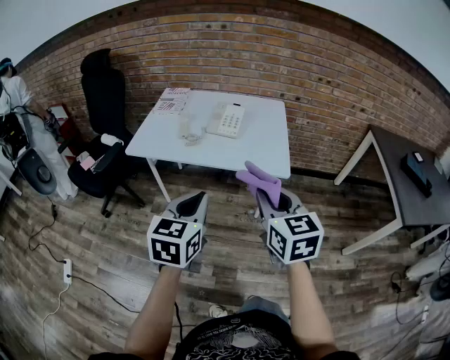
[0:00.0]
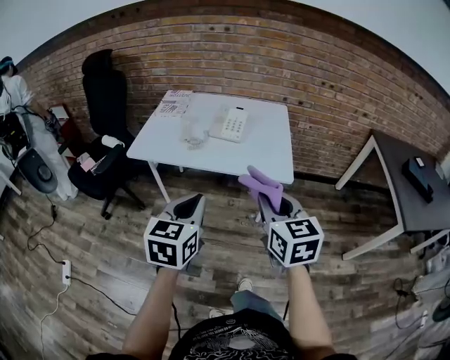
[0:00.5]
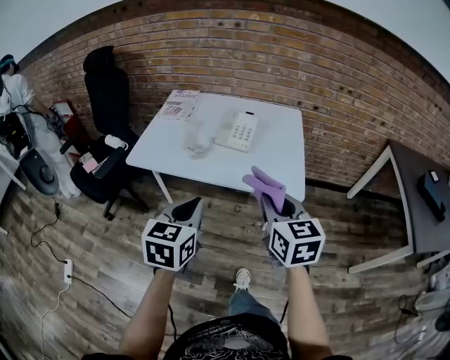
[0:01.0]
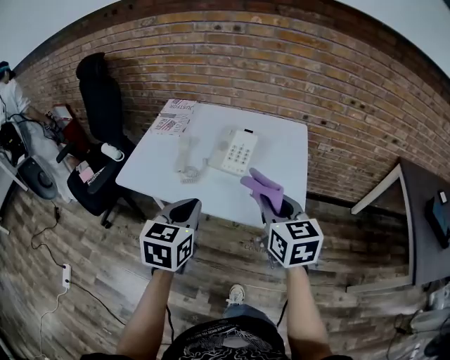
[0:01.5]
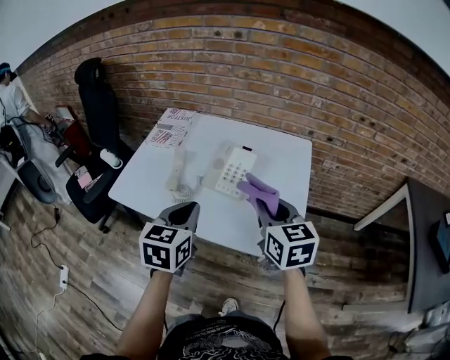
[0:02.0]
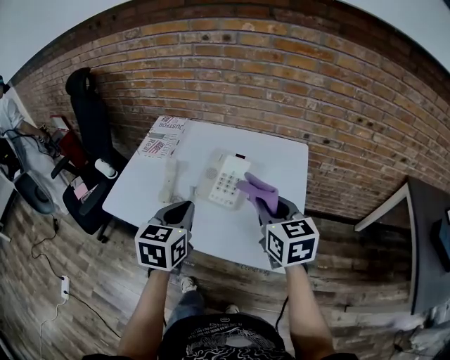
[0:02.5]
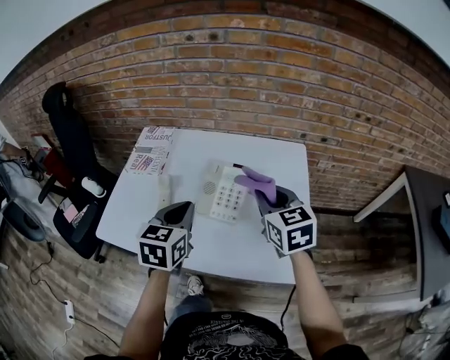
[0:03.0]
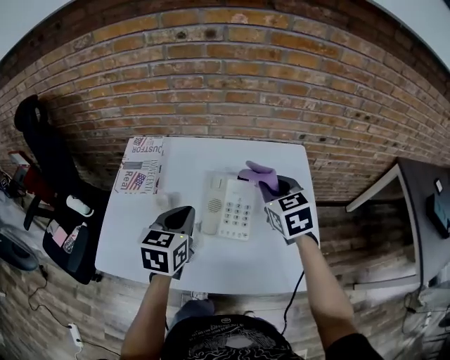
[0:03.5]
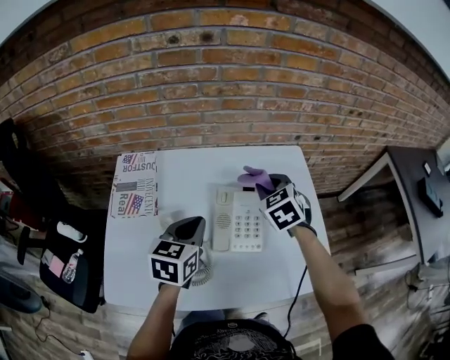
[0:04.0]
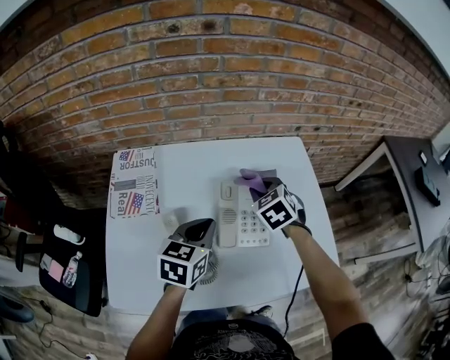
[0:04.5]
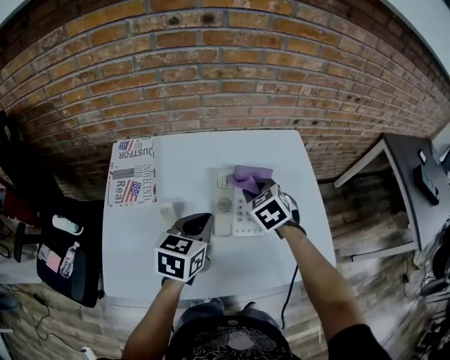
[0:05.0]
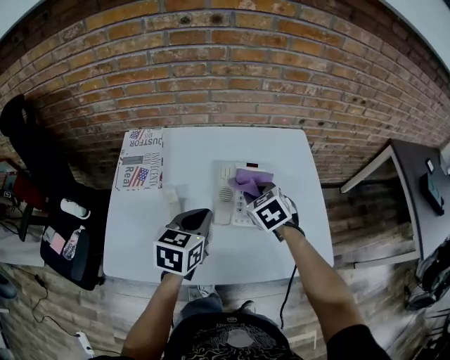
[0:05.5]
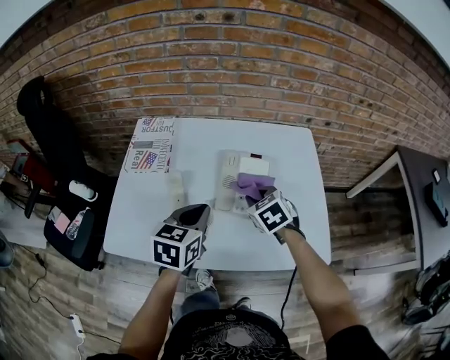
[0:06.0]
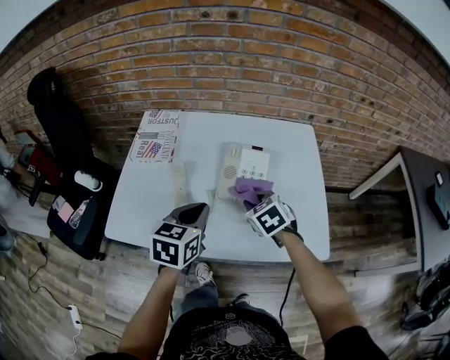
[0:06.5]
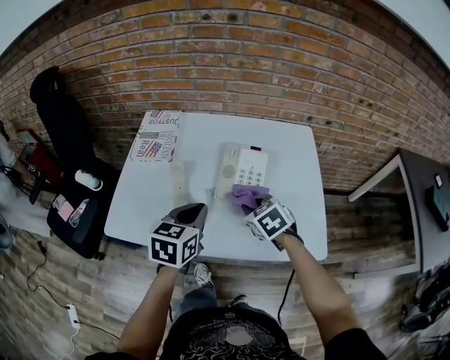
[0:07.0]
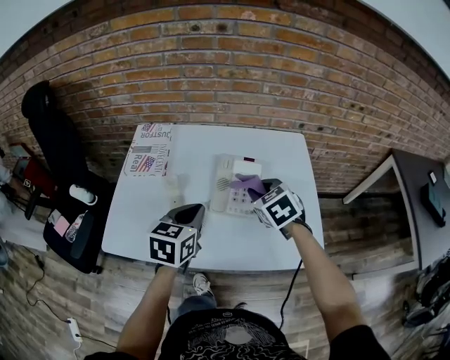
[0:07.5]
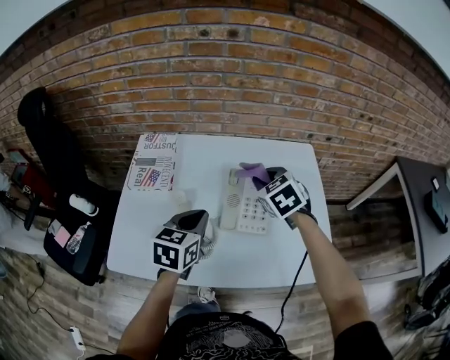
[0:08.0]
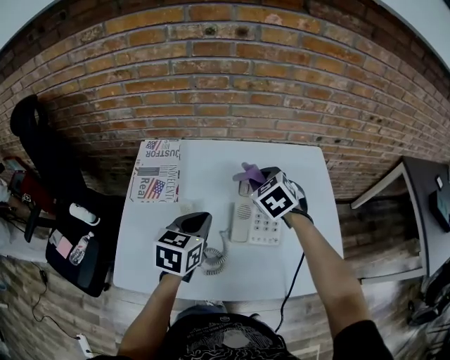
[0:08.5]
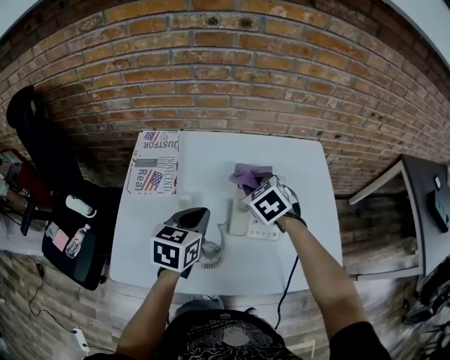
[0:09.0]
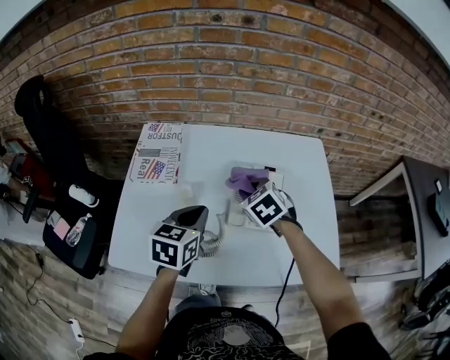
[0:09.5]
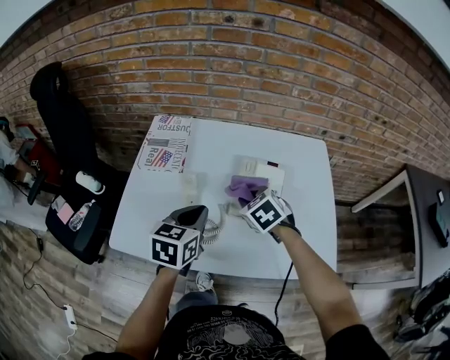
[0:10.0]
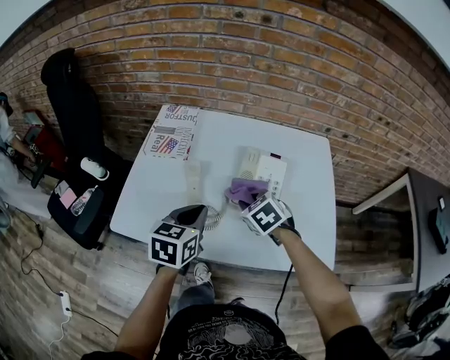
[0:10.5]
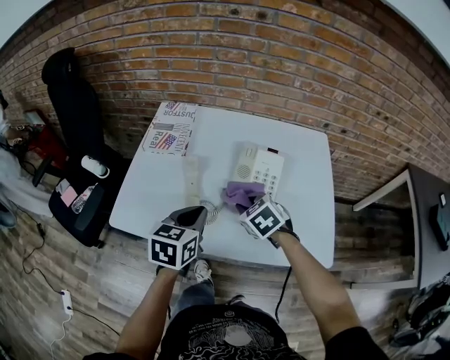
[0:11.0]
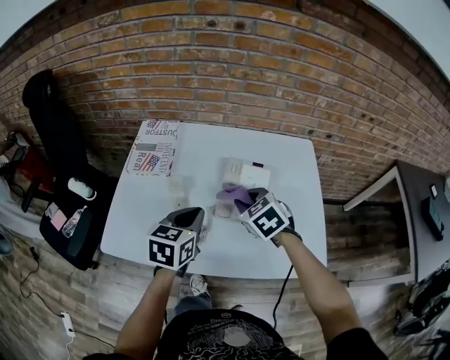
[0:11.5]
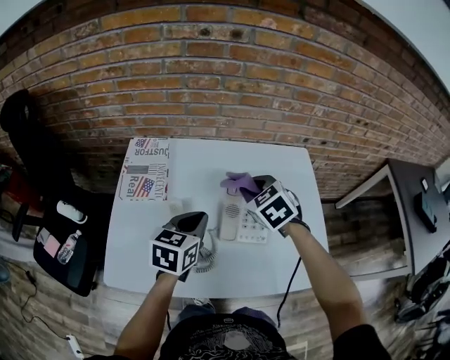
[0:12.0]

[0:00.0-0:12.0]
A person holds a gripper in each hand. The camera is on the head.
0:00.0 to 0:02.0: The two grippers go roughly 35 cm forward.
0:02.0 to 0:04.0: The left gripper shifts by some 25 cm, and swivels approximately 30 degrees. The right gripper changes place by about 30 cm, and turns by about 40 degrees.
0:04.0 to 0:06.0: The left gripper travels backward by about 10 cm; the right gripper travels backward and downward by some 15 cm.
0:06.0 to 0:08.0: The right gripper shifts about 10 cm upward and forward.
0:08.0 to 0:10.0: The right gripper moves downward, backward and to the left, roughly 15 cm.
0:10.0 to 0:12.0: The right gripper heads upward and forward, covering about 10 cm, while the left gripper is displaced forward by approximately 5 cm.

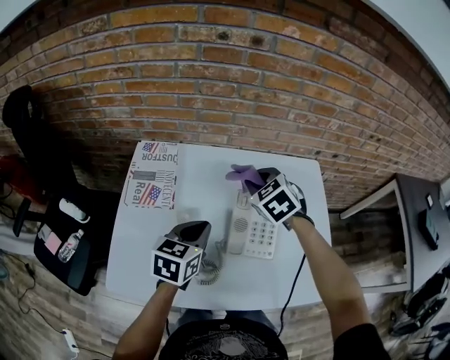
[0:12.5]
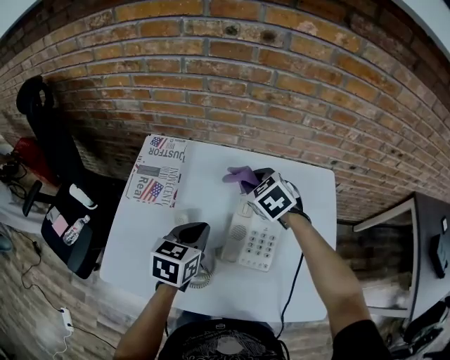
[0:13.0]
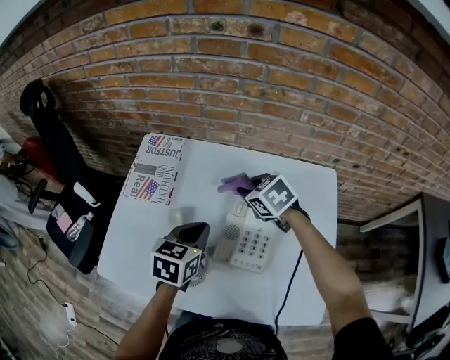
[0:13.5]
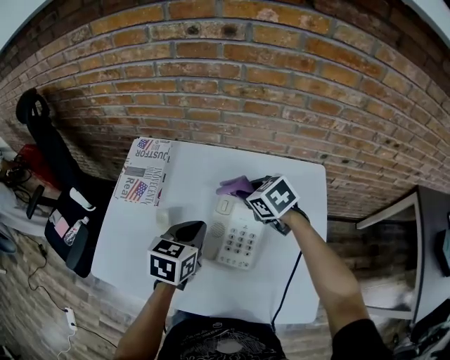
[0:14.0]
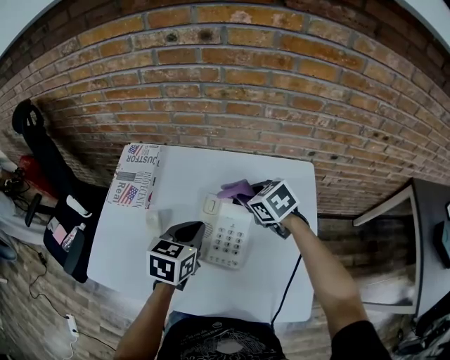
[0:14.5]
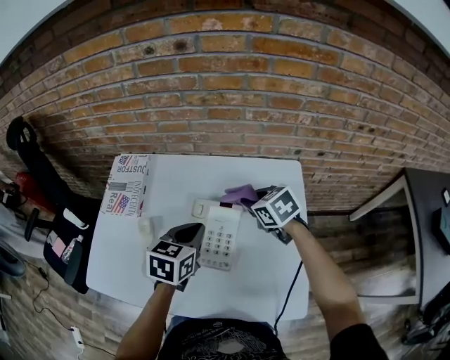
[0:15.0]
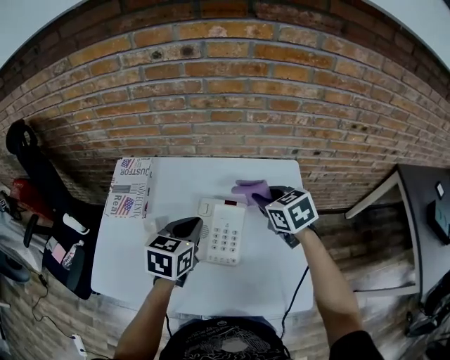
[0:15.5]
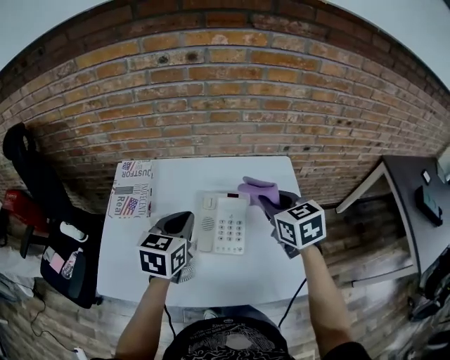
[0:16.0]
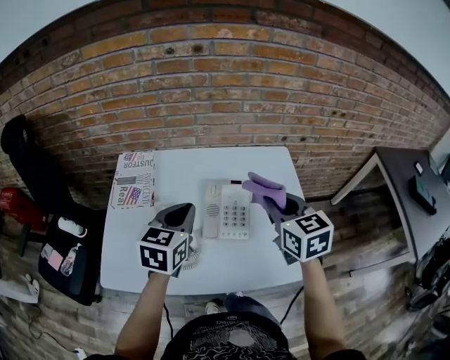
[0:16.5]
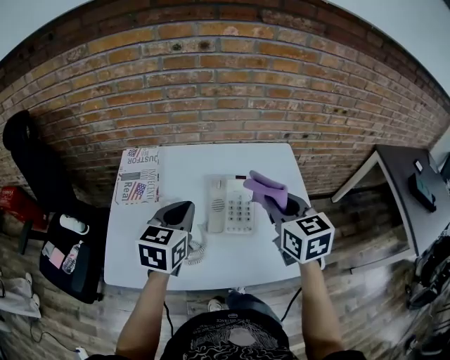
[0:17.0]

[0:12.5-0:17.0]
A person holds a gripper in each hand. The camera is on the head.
0:12.5 to 0:14.5: The left gripper heads to the right, covering some 10 cm. Meanwhile the right gripper travels to the right and downward by about 10 cm, and turns by about 30 degrees.
0:14.5 to 0:17.0: The right gripper moves backward and upward, approximately 25 cm, and rotates about 40 degrees. Meanwhile the left gripper heads upward, to the left and backward, covering some 15 cm.

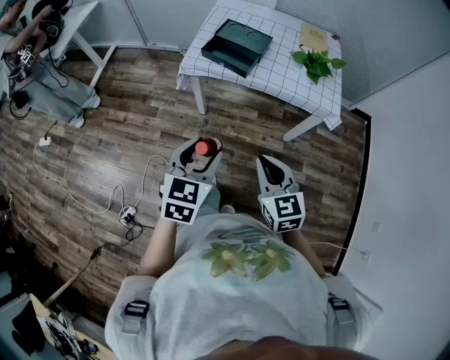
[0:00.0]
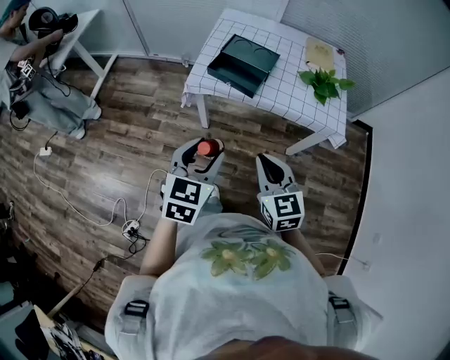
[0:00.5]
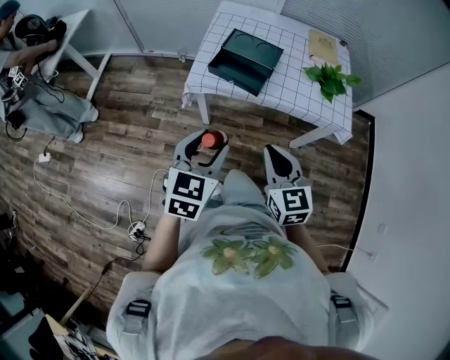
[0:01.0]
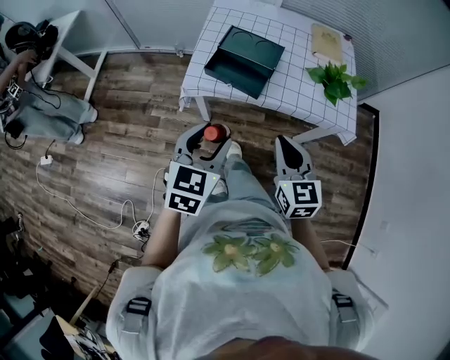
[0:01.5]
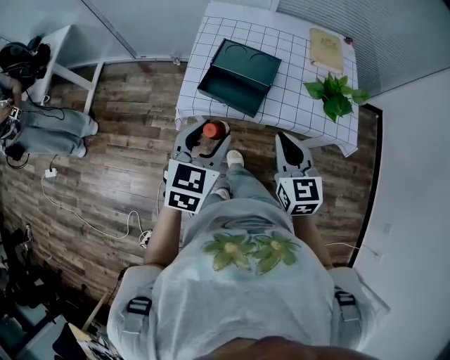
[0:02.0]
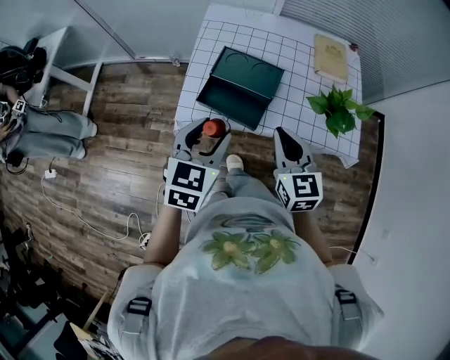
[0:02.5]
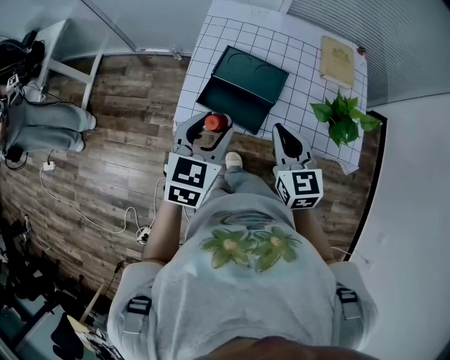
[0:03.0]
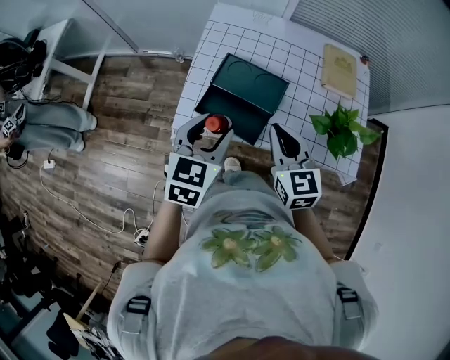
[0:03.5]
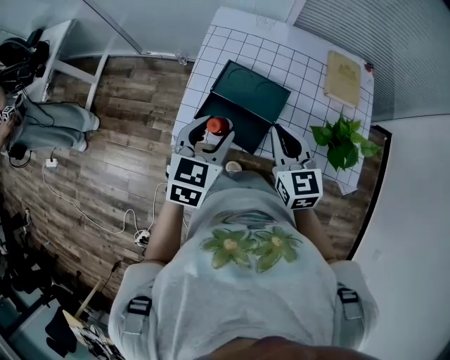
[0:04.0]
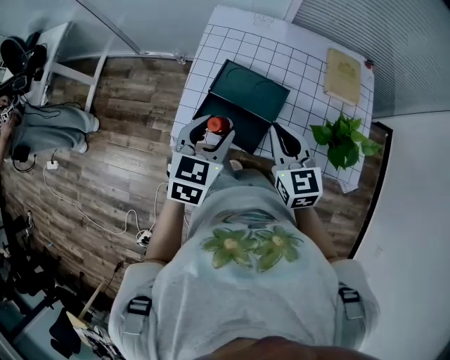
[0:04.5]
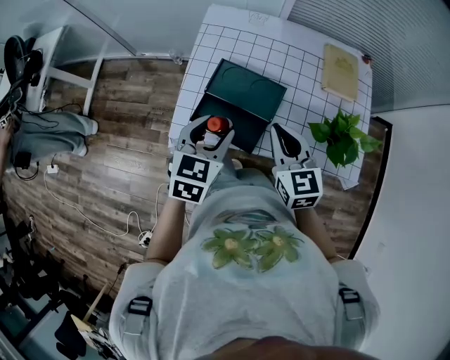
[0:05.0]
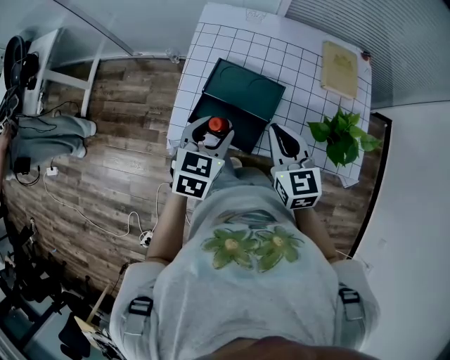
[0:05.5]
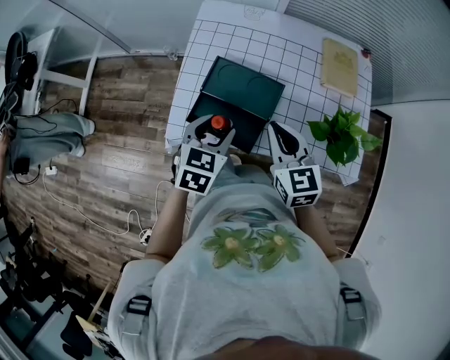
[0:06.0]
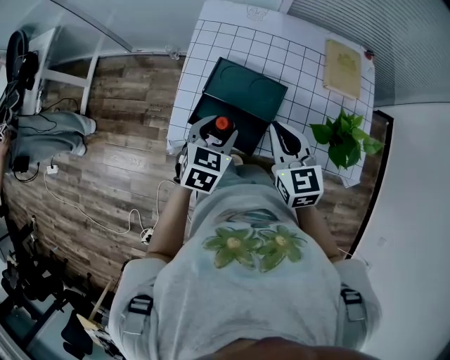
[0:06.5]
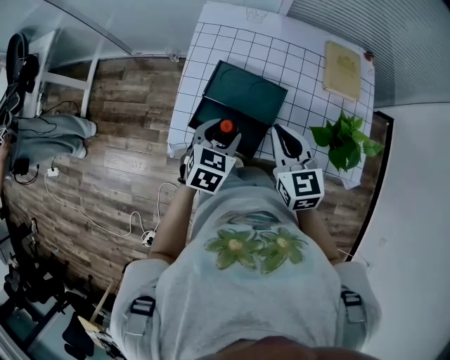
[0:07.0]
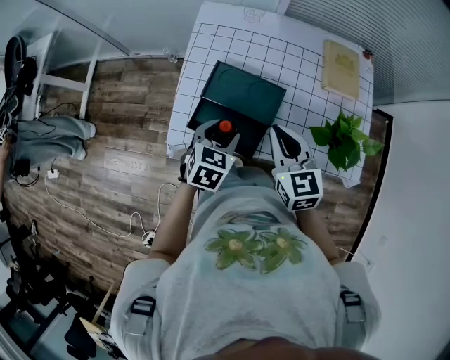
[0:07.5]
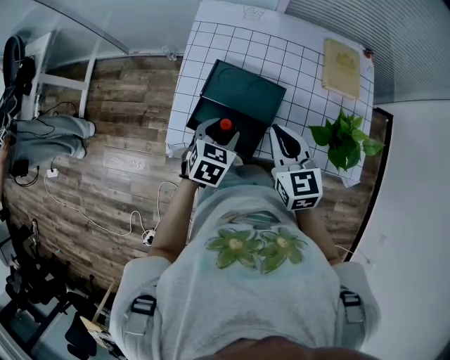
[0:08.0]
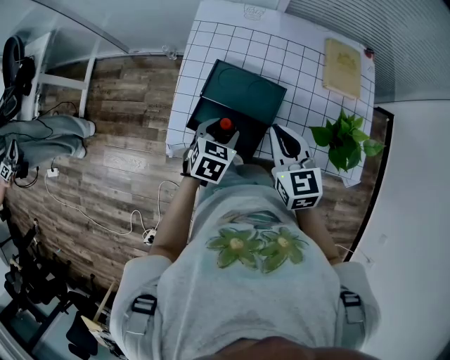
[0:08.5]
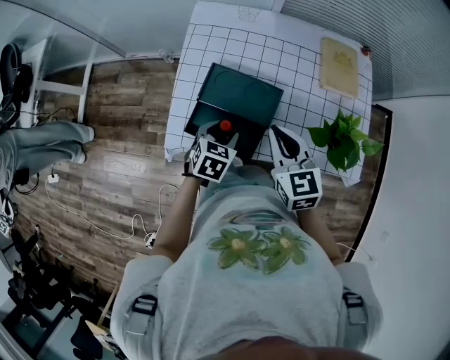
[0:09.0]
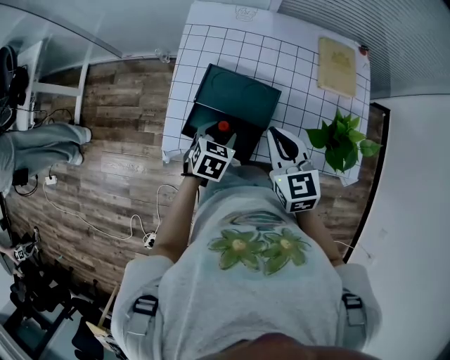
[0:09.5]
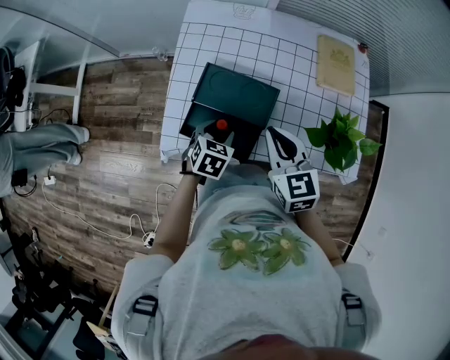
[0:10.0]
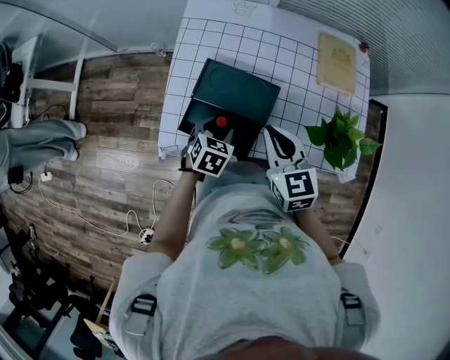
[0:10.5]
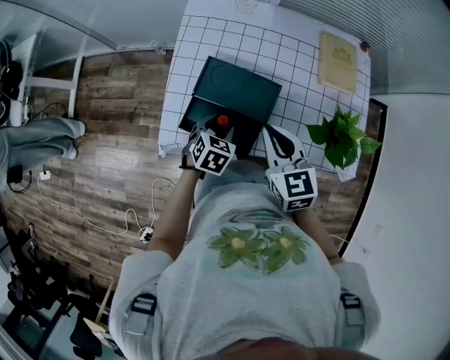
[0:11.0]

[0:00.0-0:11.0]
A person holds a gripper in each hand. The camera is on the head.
0:00.0 to 0:02.0: Both grippers move forward, about 30 cm.
0:02.0 to 0:03.5: The two grippers go about 15 cm forward.
0:03.5 to 0:05.5: The left gripper heads downward, covering about 5 cm.
0:05.5 to 0:07.5: The left gripper travels downward by some 5 cm.
0:07.5 to 0:09.0: The left gripper travels downward by approximately 5 cm.
0:09.0 to 0:11.0: The grippers make only small movements.
